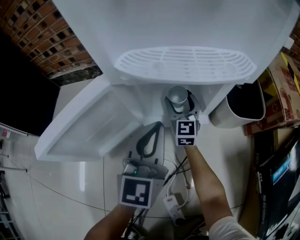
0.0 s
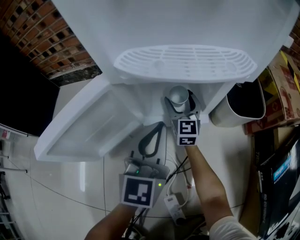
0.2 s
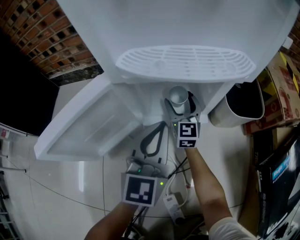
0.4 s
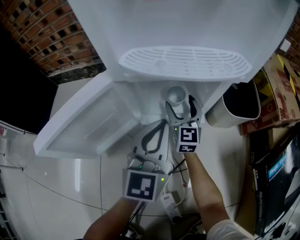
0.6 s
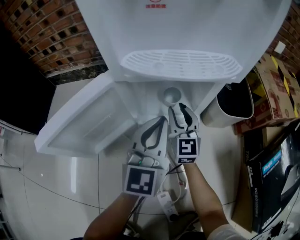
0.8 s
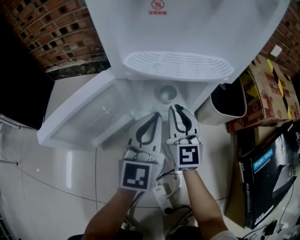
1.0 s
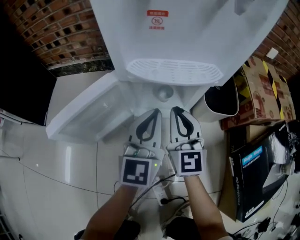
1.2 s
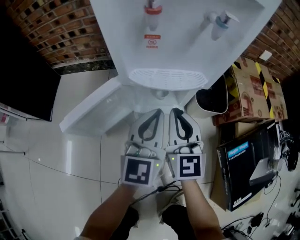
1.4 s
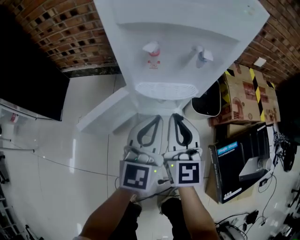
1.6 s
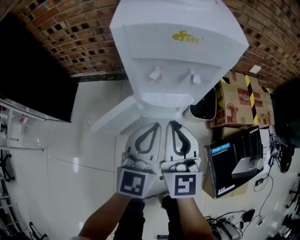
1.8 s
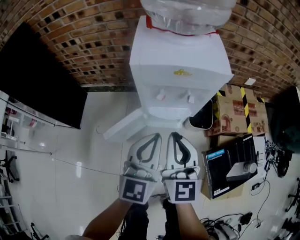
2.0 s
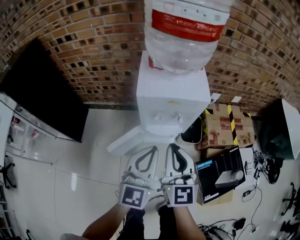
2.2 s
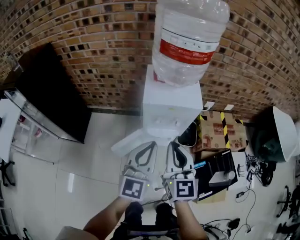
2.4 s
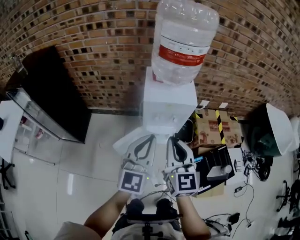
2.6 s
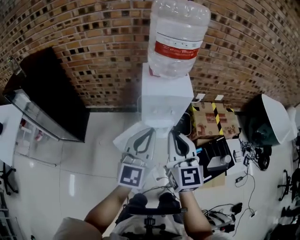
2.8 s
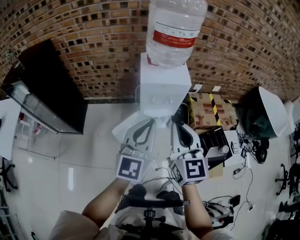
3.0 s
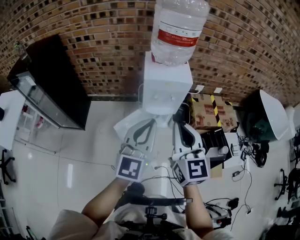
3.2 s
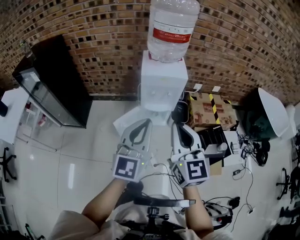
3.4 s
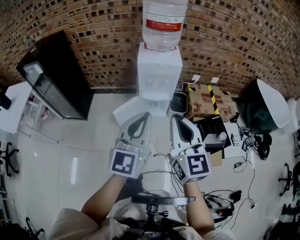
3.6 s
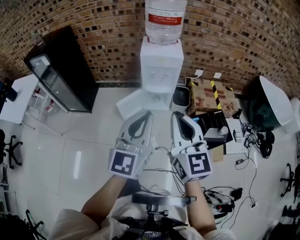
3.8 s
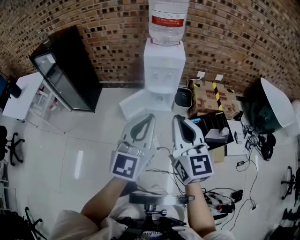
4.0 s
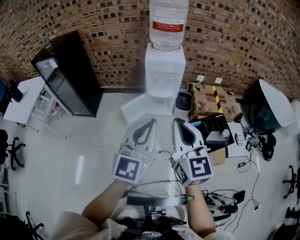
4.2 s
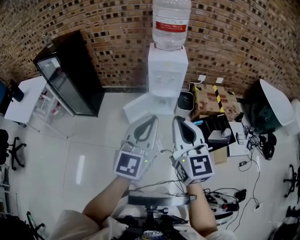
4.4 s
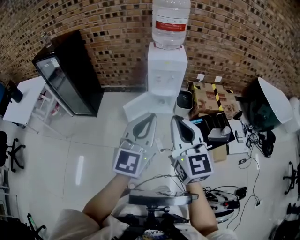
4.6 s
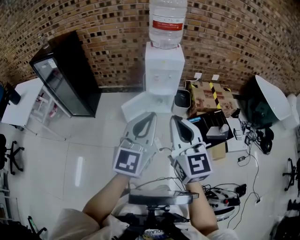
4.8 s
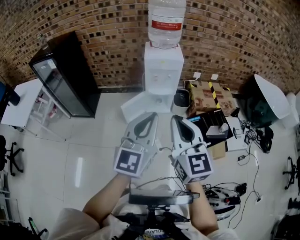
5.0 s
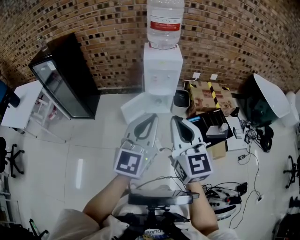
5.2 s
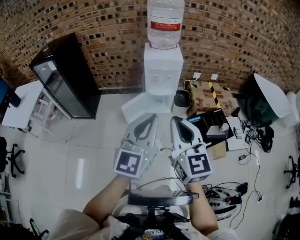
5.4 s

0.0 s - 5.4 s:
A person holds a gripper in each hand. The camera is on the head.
0.0 s - 1.4 s: The left gripper moves upward, roughly 15 cm; the right gripper moves upward and backward, some 35 cm, and closes its fingers.
1.4 s - 2.8 s: The two grippers go about 50 cm upward.
2.8 s - 4.0 s: Both grippers move backward, roughly 30 cm.
4.0 s - 5.4 s: The right gripper moves some 5 cm.

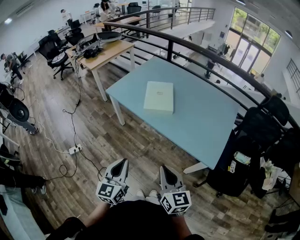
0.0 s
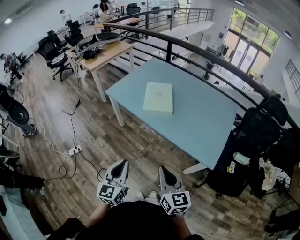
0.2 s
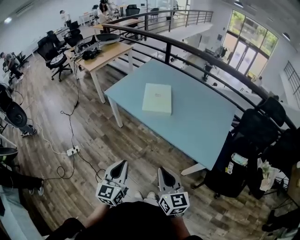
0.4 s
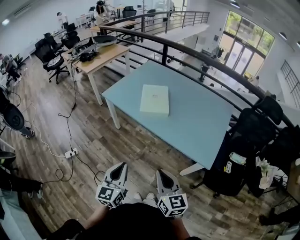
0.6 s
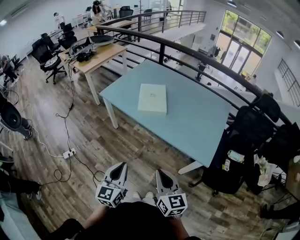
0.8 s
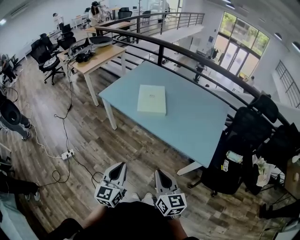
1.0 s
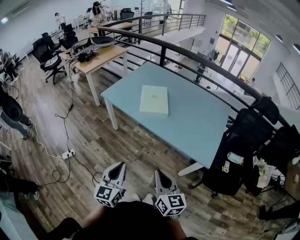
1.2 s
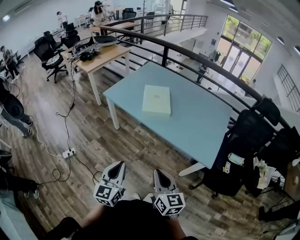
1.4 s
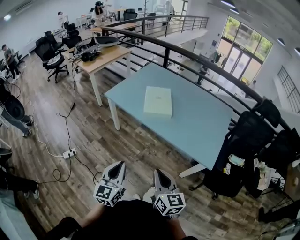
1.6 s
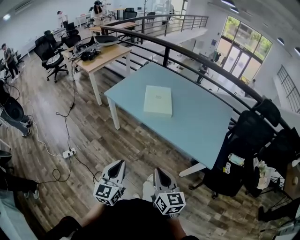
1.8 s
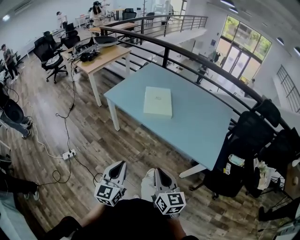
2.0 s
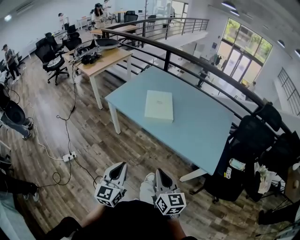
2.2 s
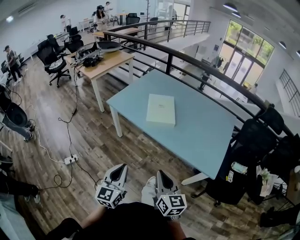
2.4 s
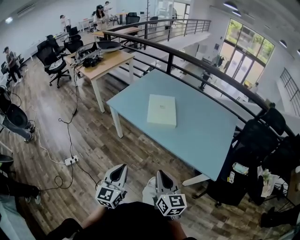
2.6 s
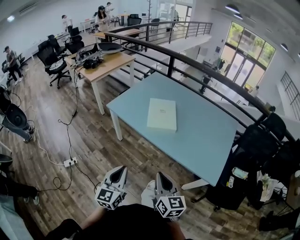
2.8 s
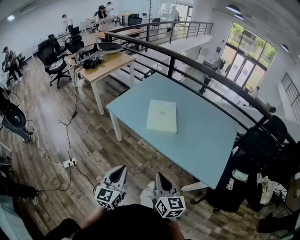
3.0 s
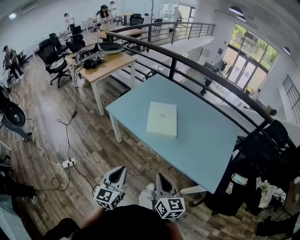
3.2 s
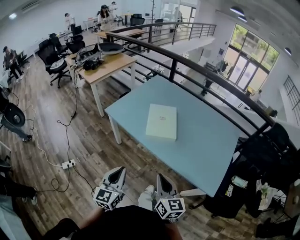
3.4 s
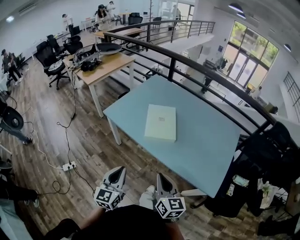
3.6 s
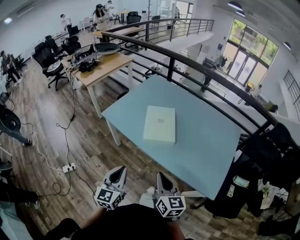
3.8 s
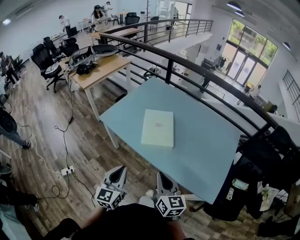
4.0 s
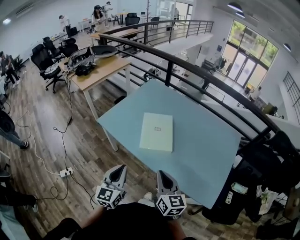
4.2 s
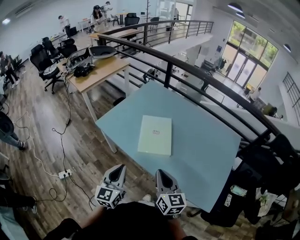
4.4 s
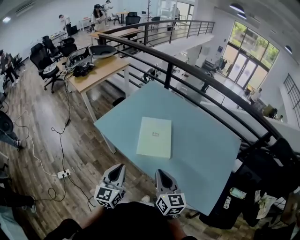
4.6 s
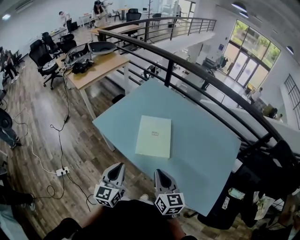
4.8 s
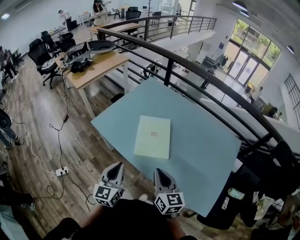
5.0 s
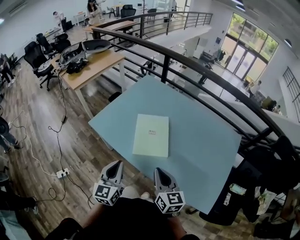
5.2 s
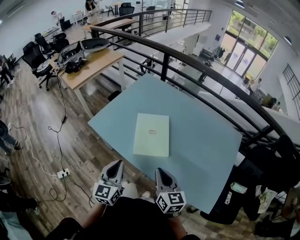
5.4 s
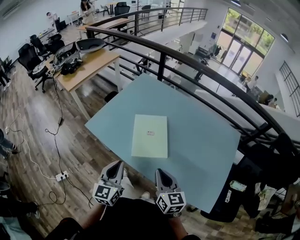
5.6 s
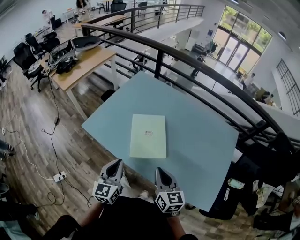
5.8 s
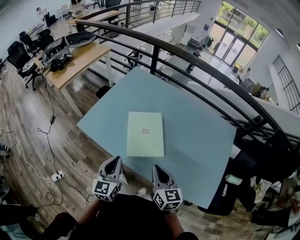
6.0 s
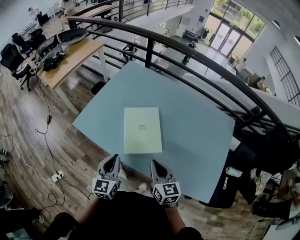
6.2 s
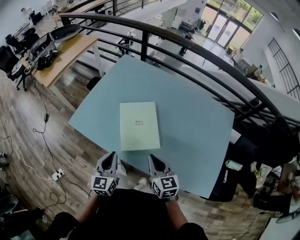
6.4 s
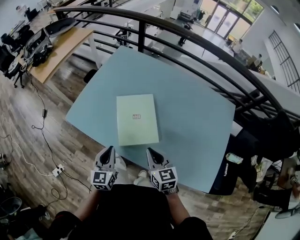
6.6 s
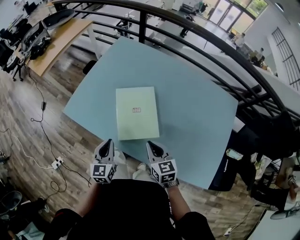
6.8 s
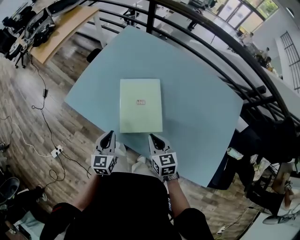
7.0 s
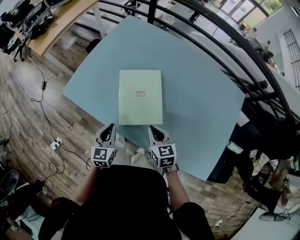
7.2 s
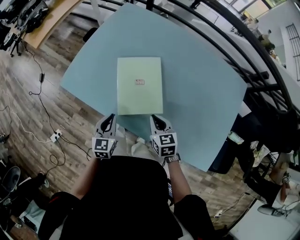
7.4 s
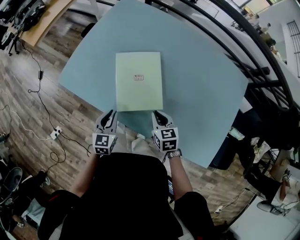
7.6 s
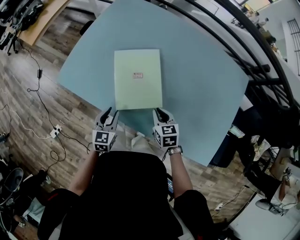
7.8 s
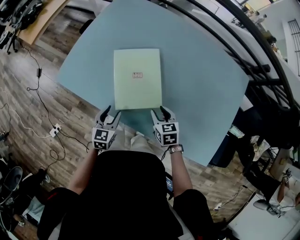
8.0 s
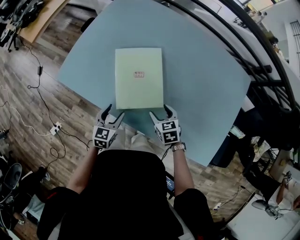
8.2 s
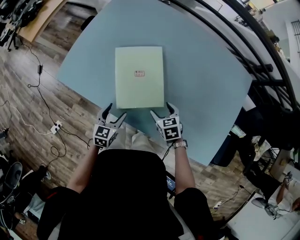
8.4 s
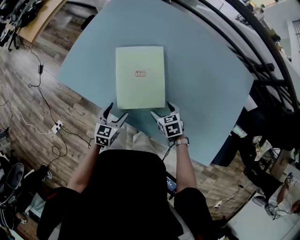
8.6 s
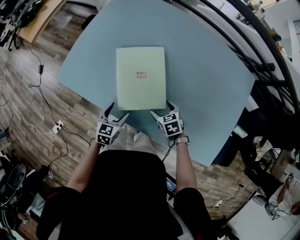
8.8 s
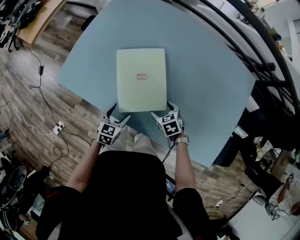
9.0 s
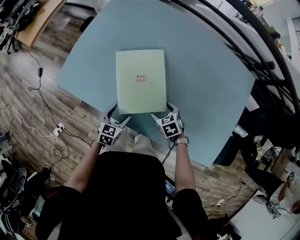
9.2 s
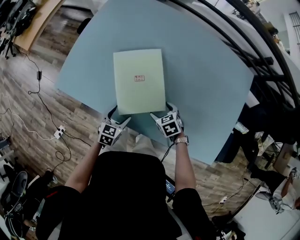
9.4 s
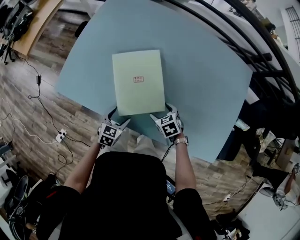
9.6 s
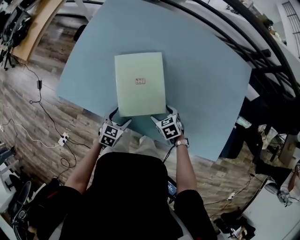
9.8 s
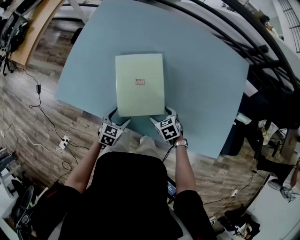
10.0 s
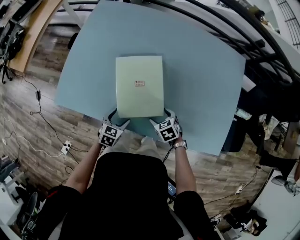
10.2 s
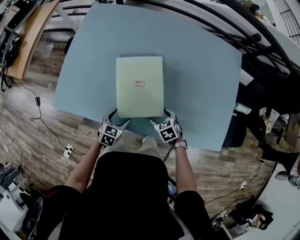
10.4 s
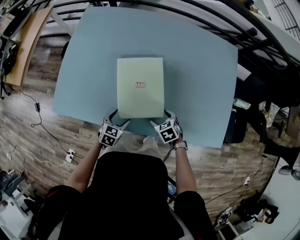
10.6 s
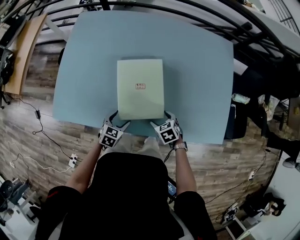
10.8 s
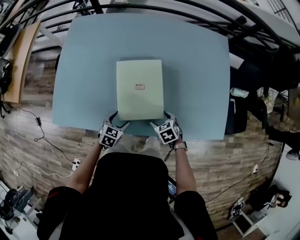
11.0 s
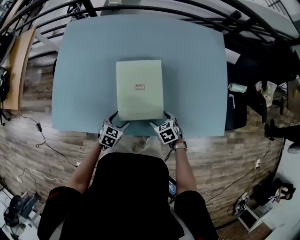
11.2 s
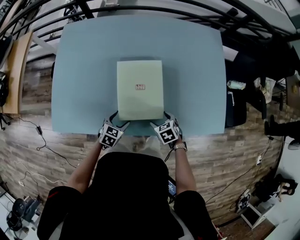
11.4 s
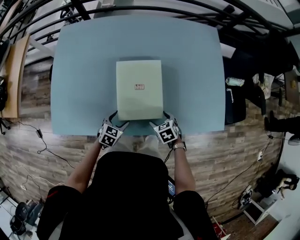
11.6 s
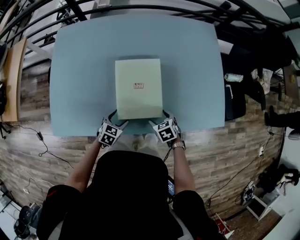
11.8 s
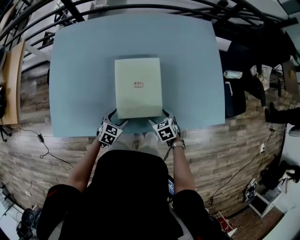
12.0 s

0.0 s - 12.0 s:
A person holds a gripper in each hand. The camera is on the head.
0.0 s - 1.6 s: Both grippers move to the left, roughly 5 cm.
1.6 s - 3.0 s: The grippers both shift forward by about 10 cm.
3.0 s - 4.4 s: Both grippers travel together forward, approximately 20 cm.
4.4 s - 6.0 s: The left gripper moves forward, about 15 cm. Meanwhile the right gripper moves forward and downward, about 10 cm.
6.0 s - 7.6 s: Both grippers travel together downward, about 20 cm. The left gripper rotates some 20 degrees. The right gripper swivels approximately 30 degrees.
7.6 s - 9.0 s: Both grippers travel together downward, some 10 cm. The left gripper opens; the right gripper swivels roughly 20 degrees, and opens up.
9.0 s - 10.4 s: The right gripper shifts about 5 cm backward. The left gripper swivels about 20 degrees.
10.4 s - 12.0 s: The right gripper shifts by some 5 cm, and turns by about 20 degrees; the left gripper swivels about 20 degrees.

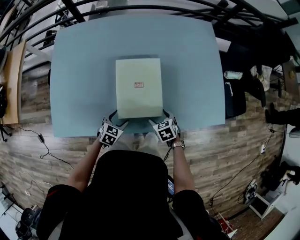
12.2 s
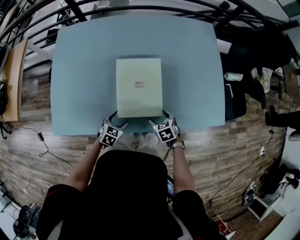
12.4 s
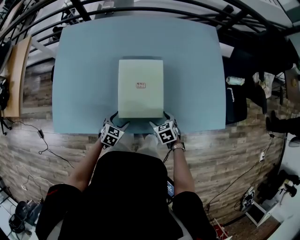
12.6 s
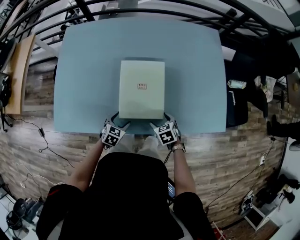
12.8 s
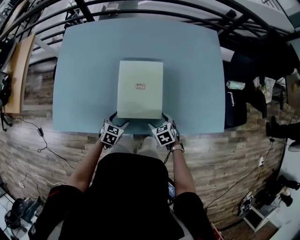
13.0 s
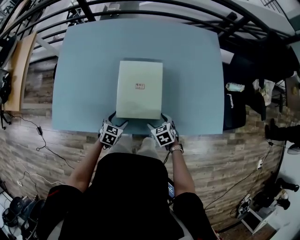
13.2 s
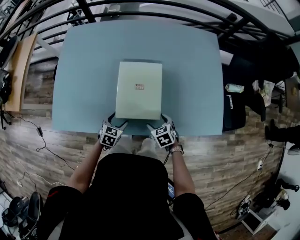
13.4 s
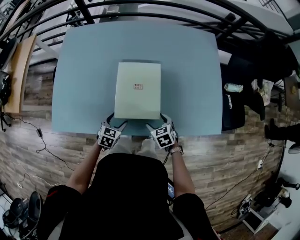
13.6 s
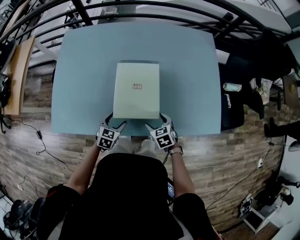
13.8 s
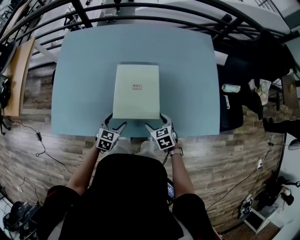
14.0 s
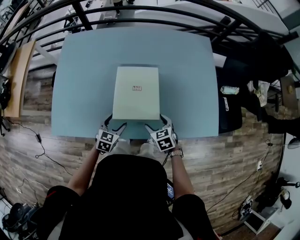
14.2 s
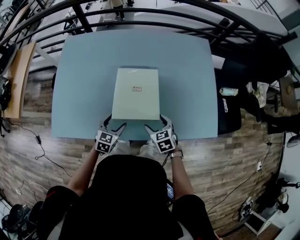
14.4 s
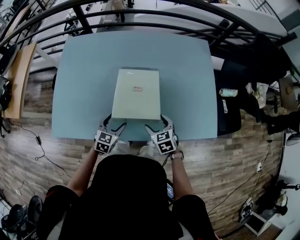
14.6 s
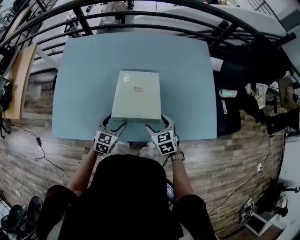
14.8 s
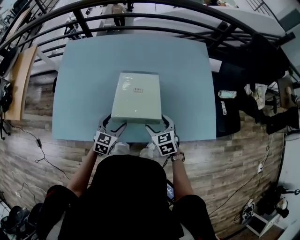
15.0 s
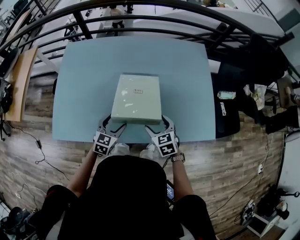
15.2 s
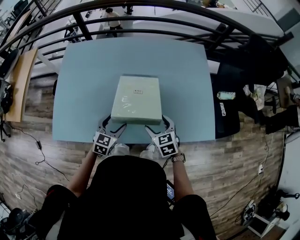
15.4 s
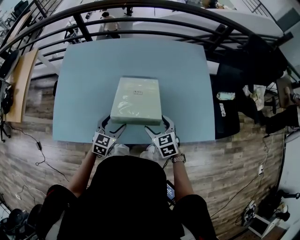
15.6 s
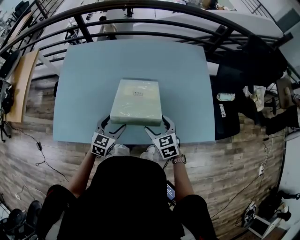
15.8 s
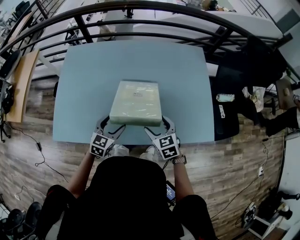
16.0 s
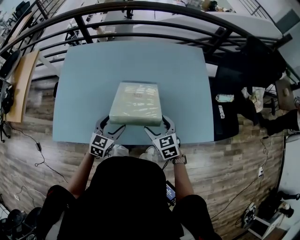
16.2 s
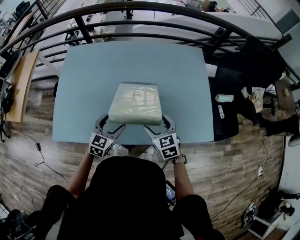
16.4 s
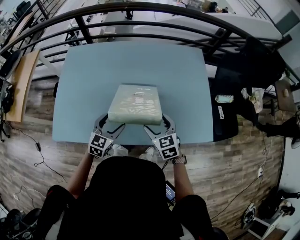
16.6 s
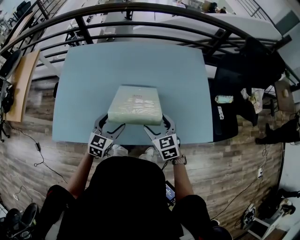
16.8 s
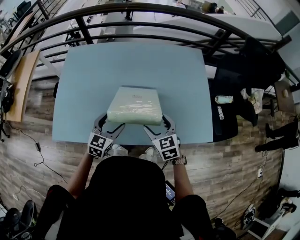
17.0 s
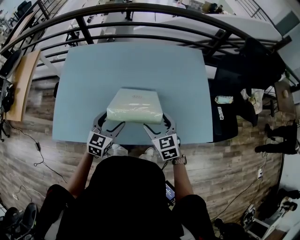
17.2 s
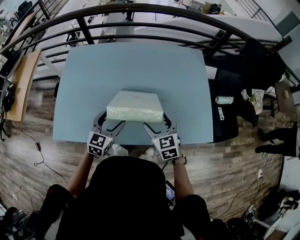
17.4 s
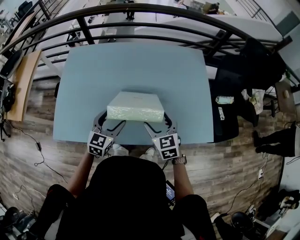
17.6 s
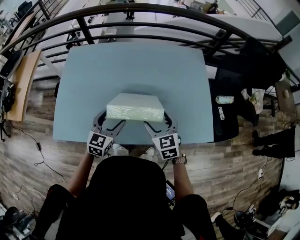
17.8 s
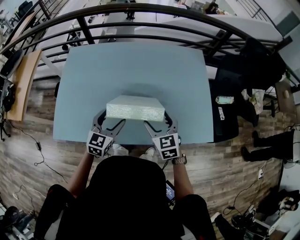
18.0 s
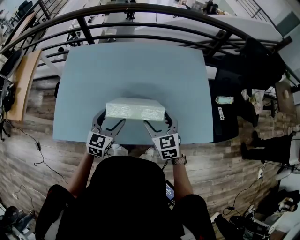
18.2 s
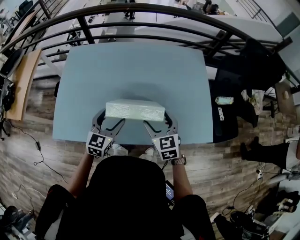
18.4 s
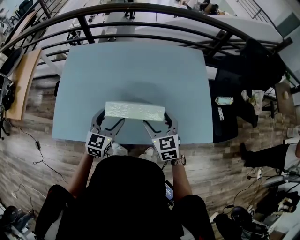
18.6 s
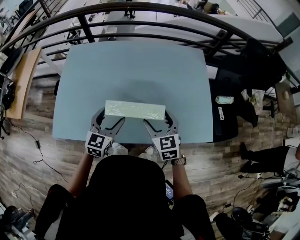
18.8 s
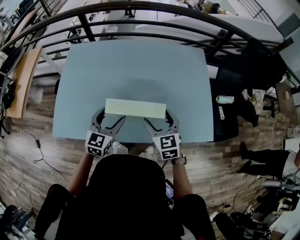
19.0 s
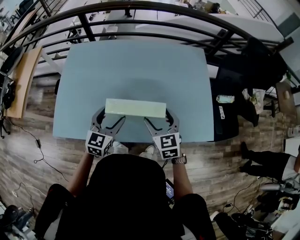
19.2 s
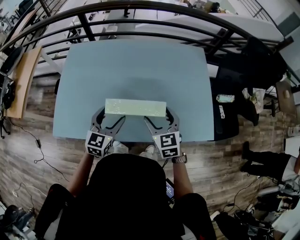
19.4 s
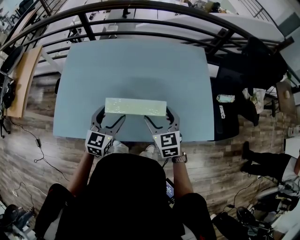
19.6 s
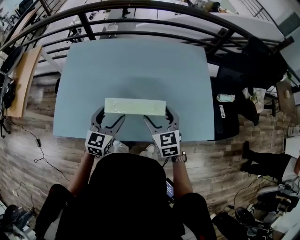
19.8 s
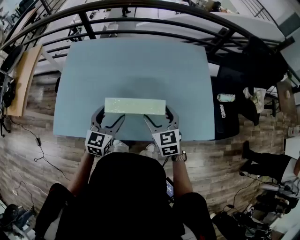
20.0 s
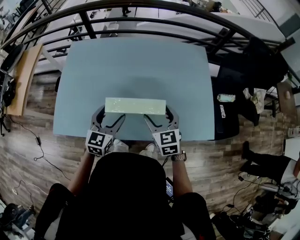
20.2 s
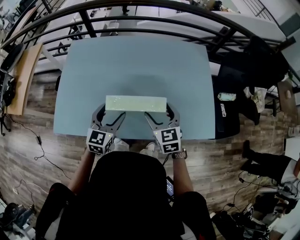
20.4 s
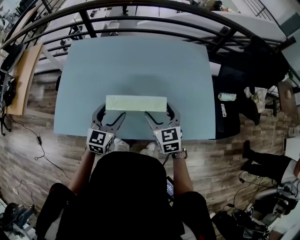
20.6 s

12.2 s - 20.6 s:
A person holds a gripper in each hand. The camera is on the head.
12.2 s - 13.6 s: There are only small adjustments of the grippers.
13.6 s - 15.0 s: The two grippers go approximately 10 cm upward.
15.0 s - 16.4 s: Both grippers travel together upward, some 5 cm.
16.4 s - 17.8 s: The left gripper heads upward, covering approximately 5 cm.
17.8 s - 20.6 s: The grippers move only a little.
